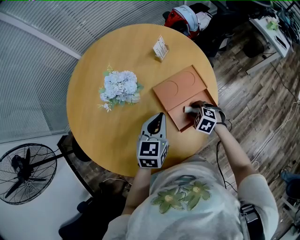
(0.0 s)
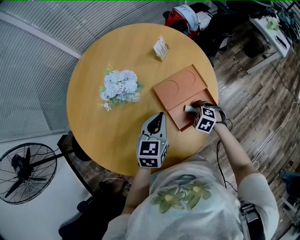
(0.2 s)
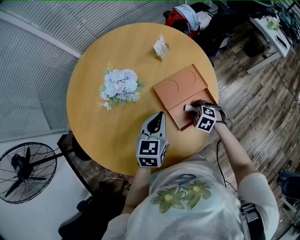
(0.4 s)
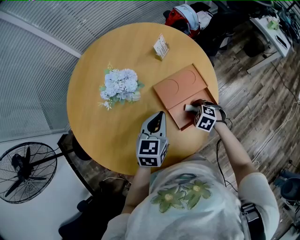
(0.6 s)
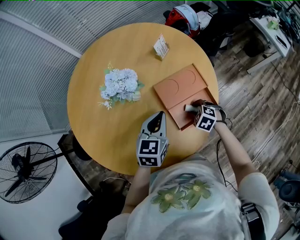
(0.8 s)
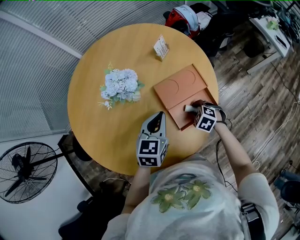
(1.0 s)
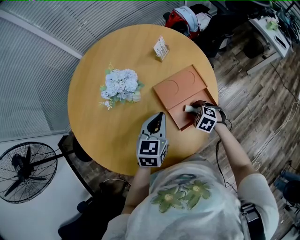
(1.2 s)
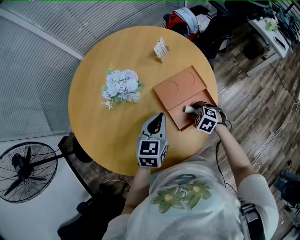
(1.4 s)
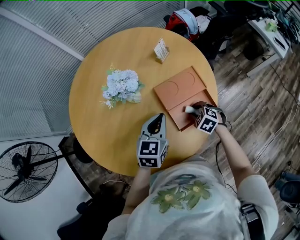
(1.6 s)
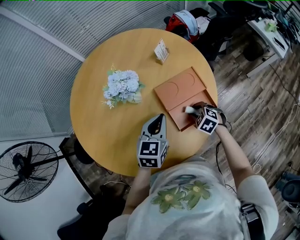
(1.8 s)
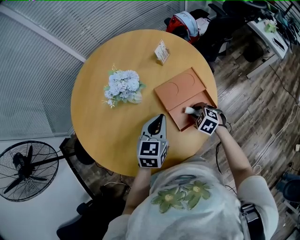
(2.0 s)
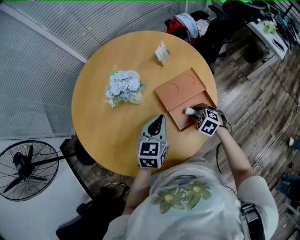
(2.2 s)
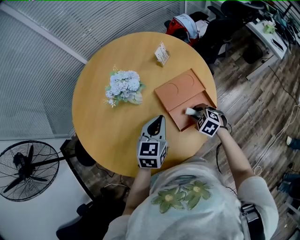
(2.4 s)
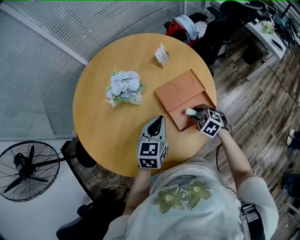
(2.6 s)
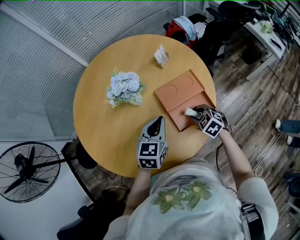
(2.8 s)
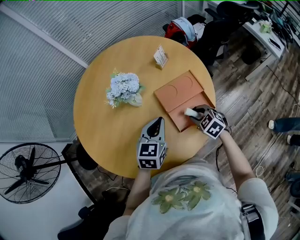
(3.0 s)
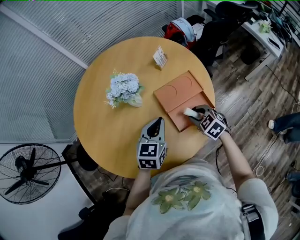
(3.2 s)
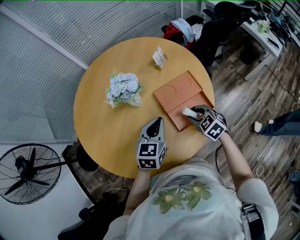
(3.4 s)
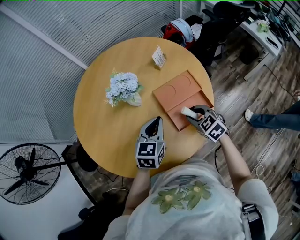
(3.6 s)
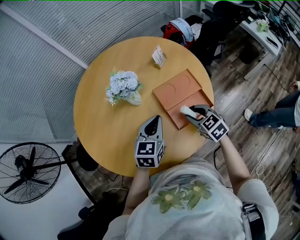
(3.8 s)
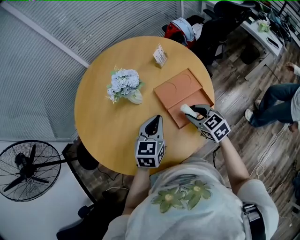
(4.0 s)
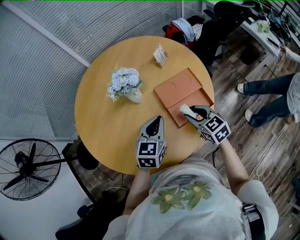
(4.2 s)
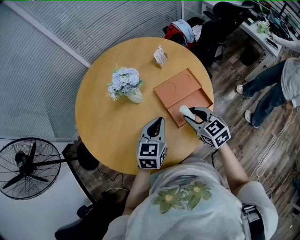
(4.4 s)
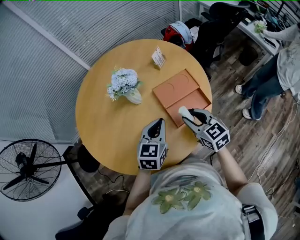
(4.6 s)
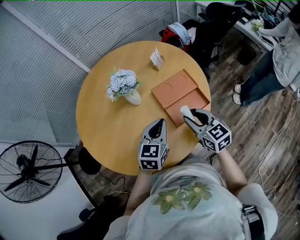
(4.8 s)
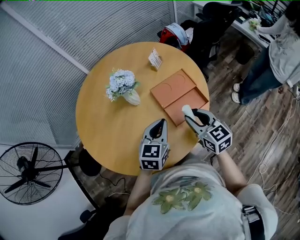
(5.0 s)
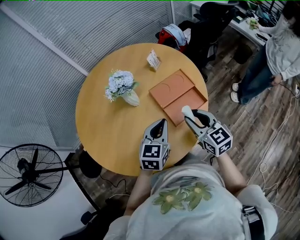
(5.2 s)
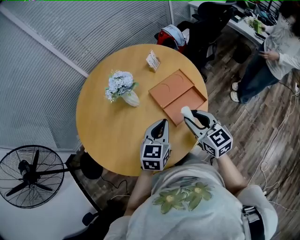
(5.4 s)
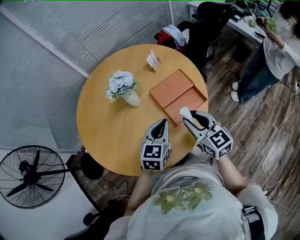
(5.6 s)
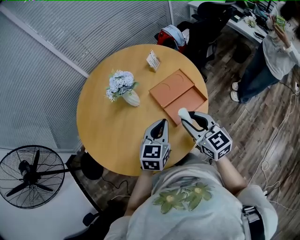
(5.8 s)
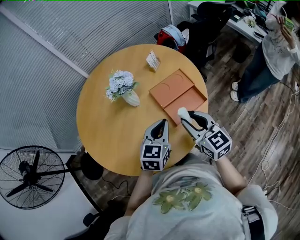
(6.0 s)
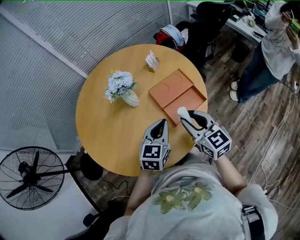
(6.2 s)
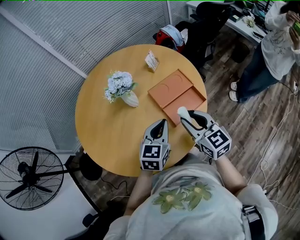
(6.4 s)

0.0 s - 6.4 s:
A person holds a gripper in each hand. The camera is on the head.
0.0 s - 1.6 s: The grippers move only a little.
1.6 s - 3.2 s: The right gripper heads upward, covering some 10 cm.
3.2 s - 4.8 s: The left gripper travels backward by approximately 5 cm. The right gripper is displaced upward and backward by some 15 cm, and swivels approximately 40 degrees.
4.8 s - 6.4 s: The right gripper moves roughly 5 cm.

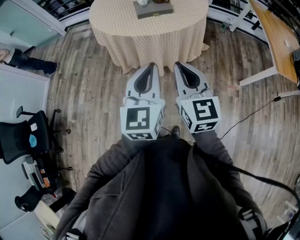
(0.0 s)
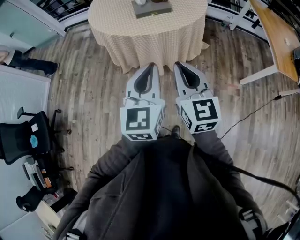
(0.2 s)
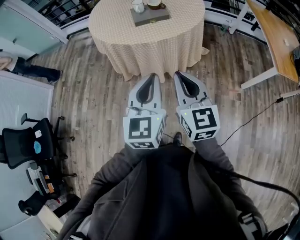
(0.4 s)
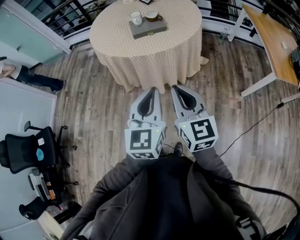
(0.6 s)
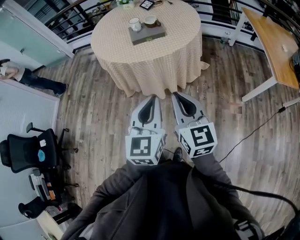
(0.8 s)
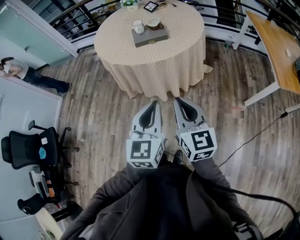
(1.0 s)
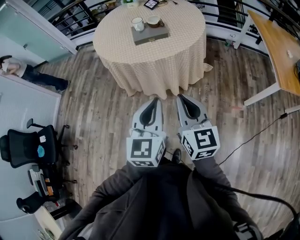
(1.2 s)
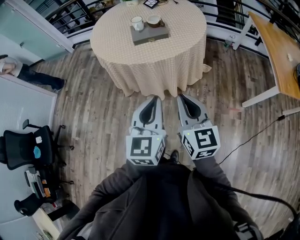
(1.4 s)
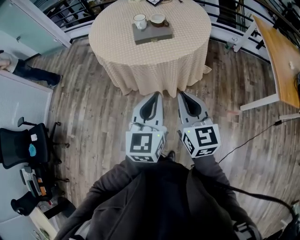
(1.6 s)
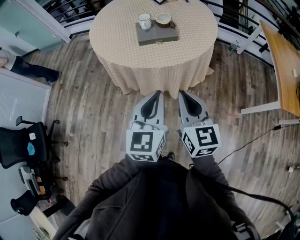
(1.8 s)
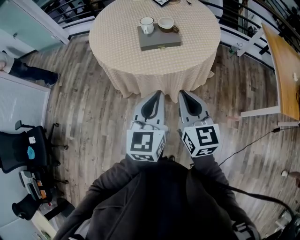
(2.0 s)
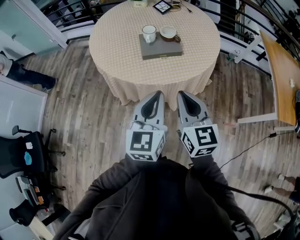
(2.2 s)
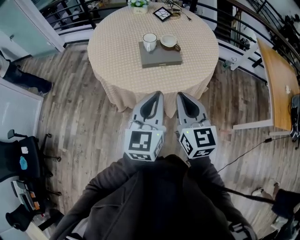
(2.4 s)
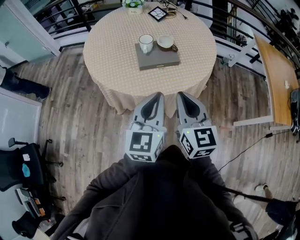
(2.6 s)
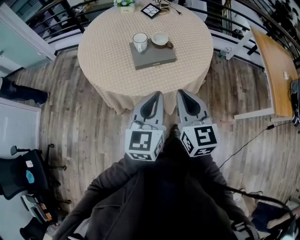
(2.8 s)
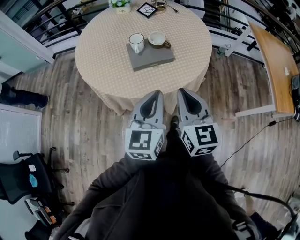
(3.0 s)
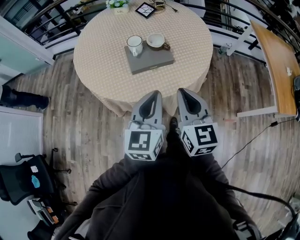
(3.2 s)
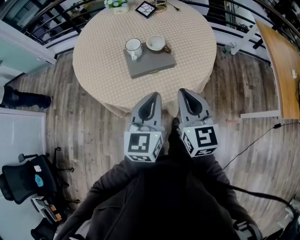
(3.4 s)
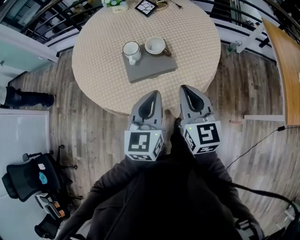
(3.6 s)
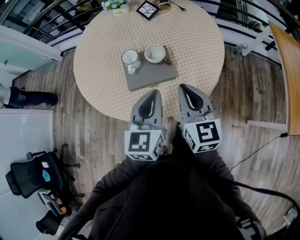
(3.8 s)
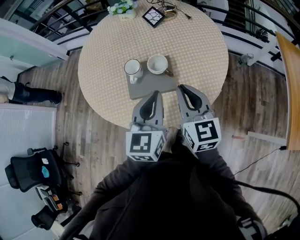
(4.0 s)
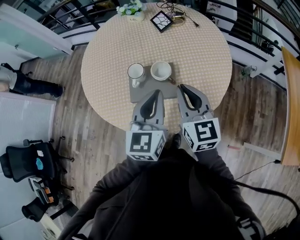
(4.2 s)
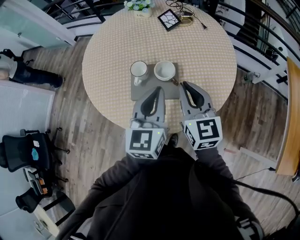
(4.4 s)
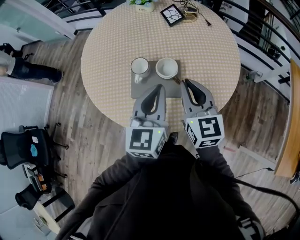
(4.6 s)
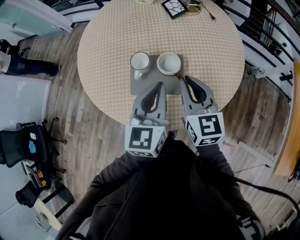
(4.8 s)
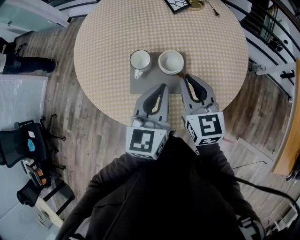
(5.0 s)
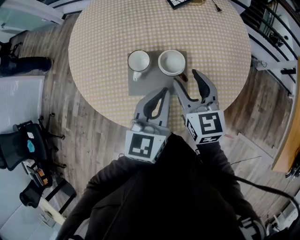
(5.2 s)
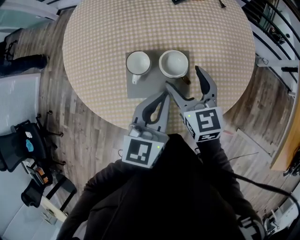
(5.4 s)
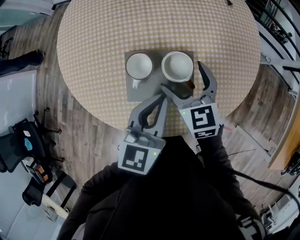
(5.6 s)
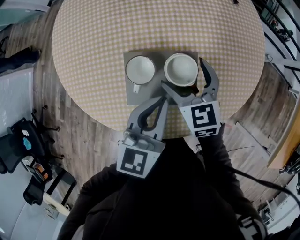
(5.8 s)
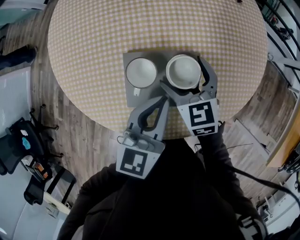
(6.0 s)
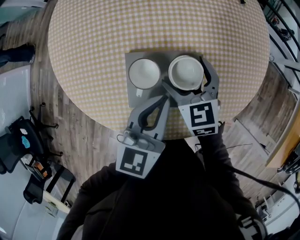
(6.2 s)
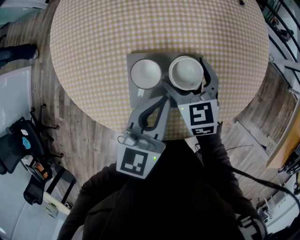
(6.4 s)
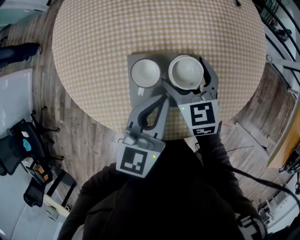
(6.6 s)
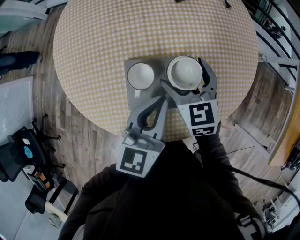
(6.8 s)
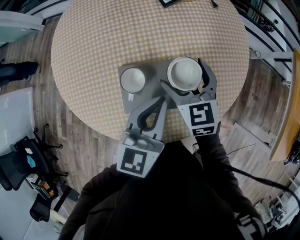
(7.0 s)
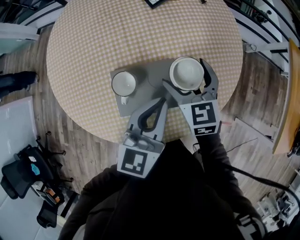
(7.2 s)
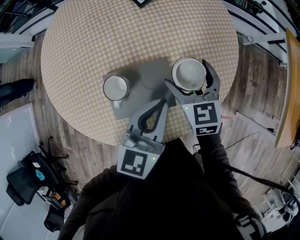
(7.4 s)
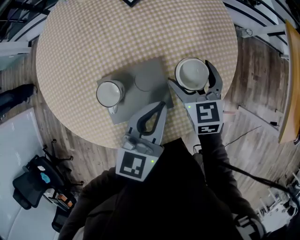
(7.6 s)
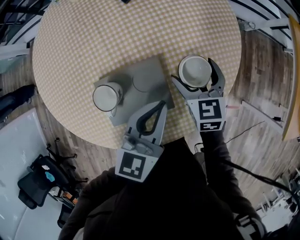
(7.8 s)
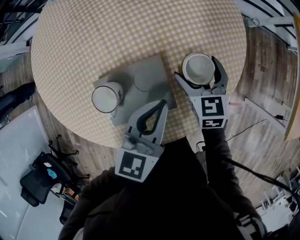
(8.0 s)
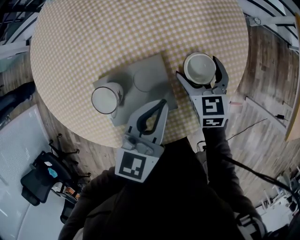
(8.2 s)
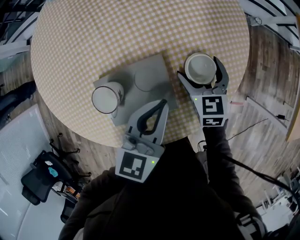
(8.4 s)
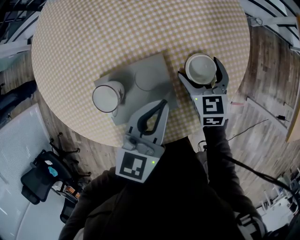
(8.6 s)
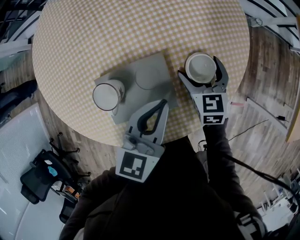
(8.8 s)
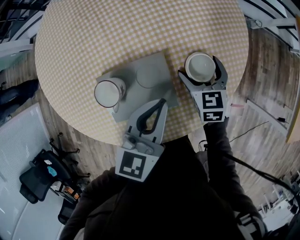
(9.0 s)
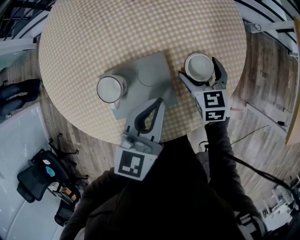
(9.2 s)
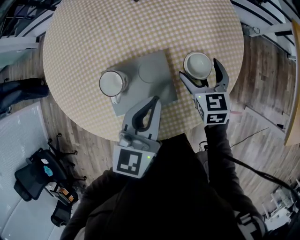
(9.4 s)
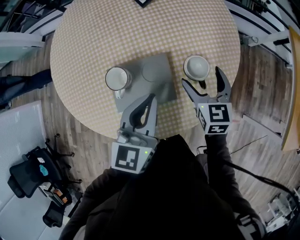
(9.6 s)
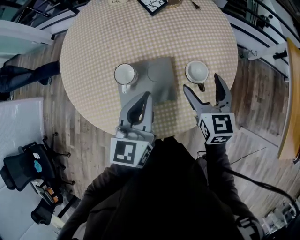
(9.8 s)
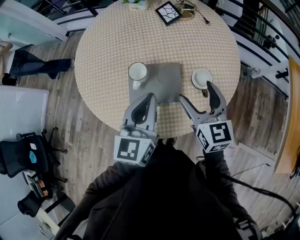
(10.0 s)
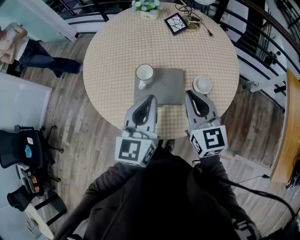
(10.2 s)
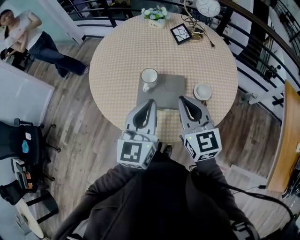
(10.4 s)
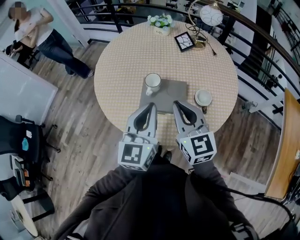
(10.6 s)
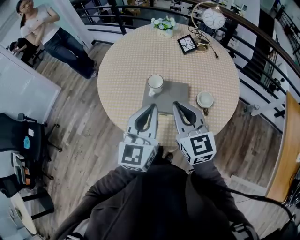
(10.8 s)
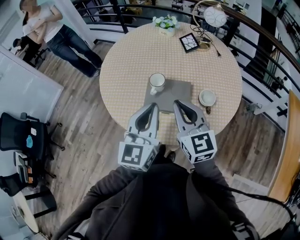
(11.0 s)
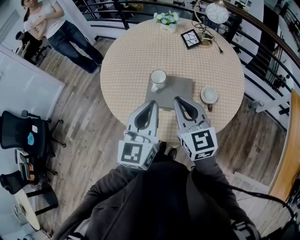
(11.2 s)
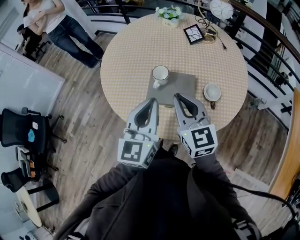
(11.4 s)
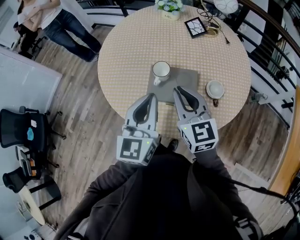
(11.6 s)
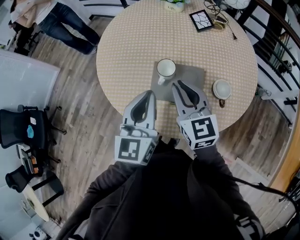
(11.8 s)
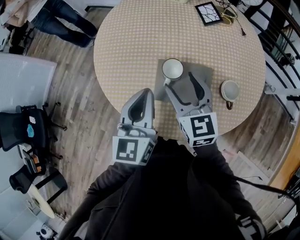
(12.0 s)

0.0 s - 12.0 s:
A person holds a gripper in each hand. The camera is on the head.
0.0 s - 1.6 s: Both grippers move forward and to the right, some 10 cm.
1.6 s - 3.0 s: The grippers both shift forward by roughly 20 cm.
3.0 s - 4.4 s: The grippers both shift forward by some 25 cm.
4.4 s - 6.0 s: The right gripper moves downward, forward and to the left, roughly 25 cm, turns by about 30 degrees, and opens. Meanwhile the left gripper goes roughly 15 cm downward, forward and to the left.
6.0 s - 7.6 s: The left gripper shifts some 10 cm to the right; the right gripper shifts about 15 cm to the right, and changes its angle by some 20 degrees.
7.6 s - 9.0 s: The right gripper heads downward, covering approximately 5 cm.
9.0 s - 10.4 s: The right gripper goes about 25 cm upward, tips its fingers upward by about 30 degrees, and closes its fingers; the left gripper moves approximately 20 cm, and swivels roughly 40 degrees.
10.4 s - 12.0 s: The right gripper heads forward, to the left and downward, covering roughly 15 cm, and opens. Meanwhile the left gripper heads forward and to the left, covering approximately 10 cm.

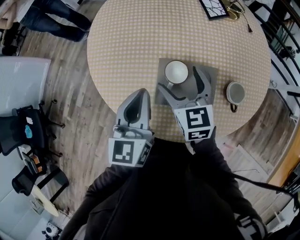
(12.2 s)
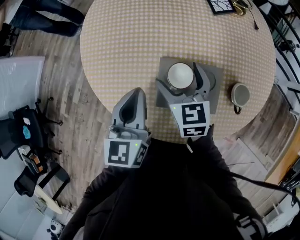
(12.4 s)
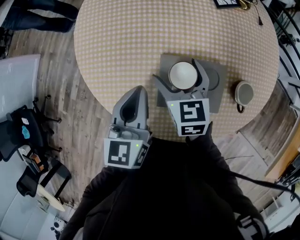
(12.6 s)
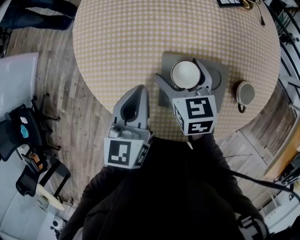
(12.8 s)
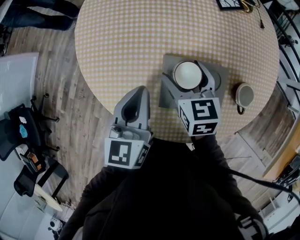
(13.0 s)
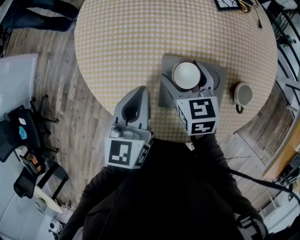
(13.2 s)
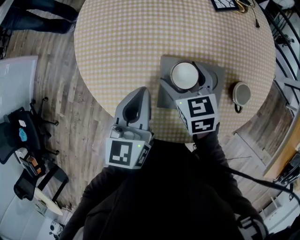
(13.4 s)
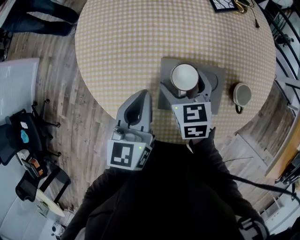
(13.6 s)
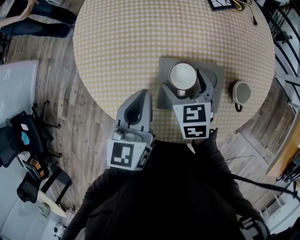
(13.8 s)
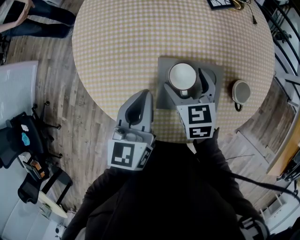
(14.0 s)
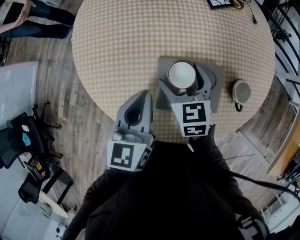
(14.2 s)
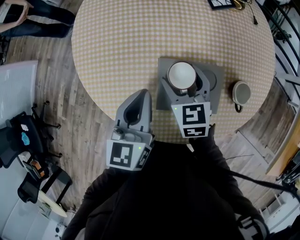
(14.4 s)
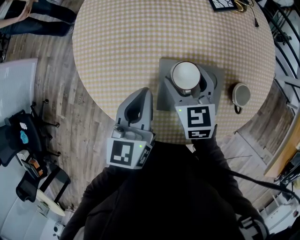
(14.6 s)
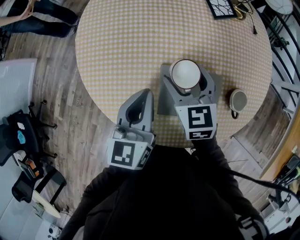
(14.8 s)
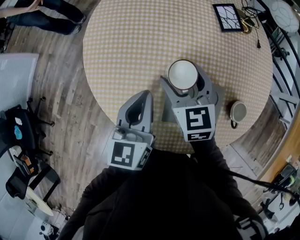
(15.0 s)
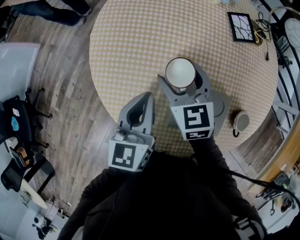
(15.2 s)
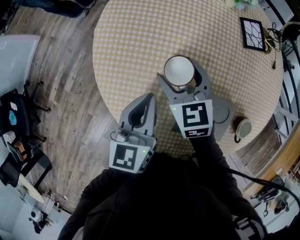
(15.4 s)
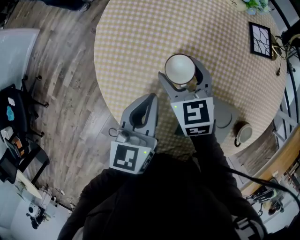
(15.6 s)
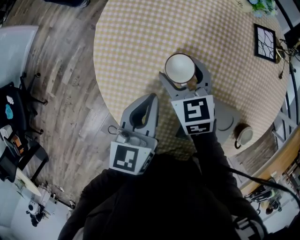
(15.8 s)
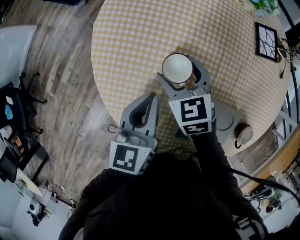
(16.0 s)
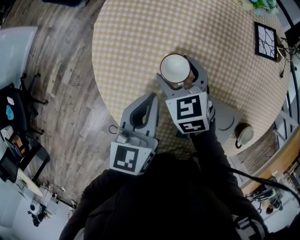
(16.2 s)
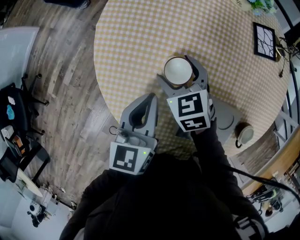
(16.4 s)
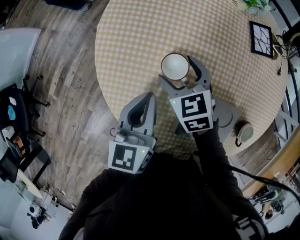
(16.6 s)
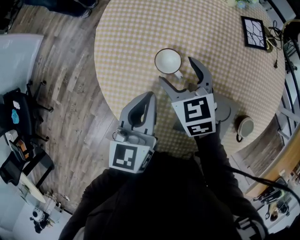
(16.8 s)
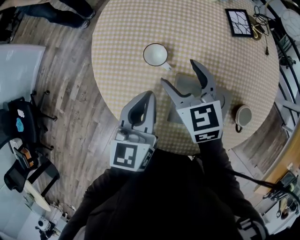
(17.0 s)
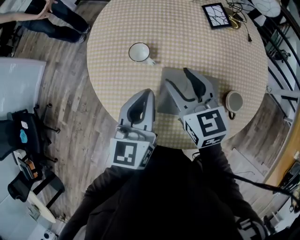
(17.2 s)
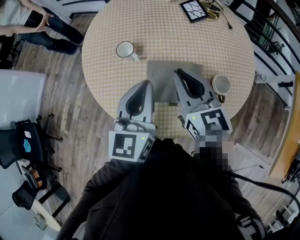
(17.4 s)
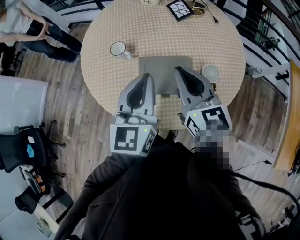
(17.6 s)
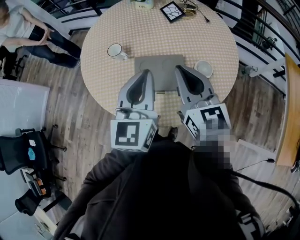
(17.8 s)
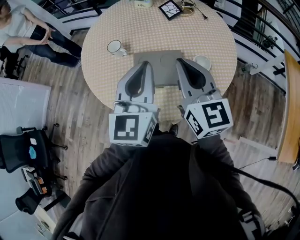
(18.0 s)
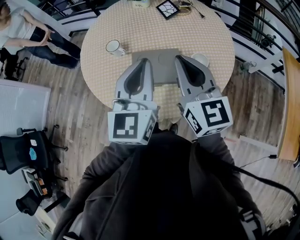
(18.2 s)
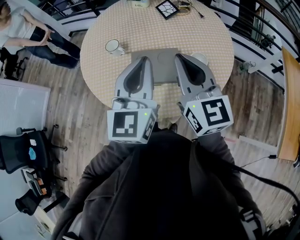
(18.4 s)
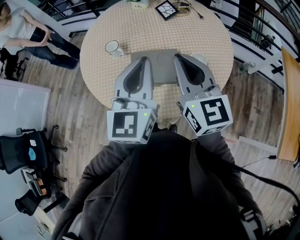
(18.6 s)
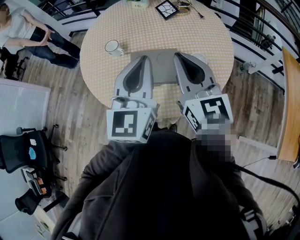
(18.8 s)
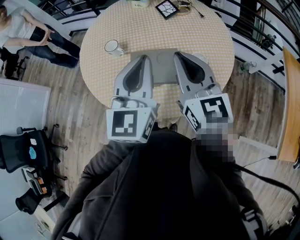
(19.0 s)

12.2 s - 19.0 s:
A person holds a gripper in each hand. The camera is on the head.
12.2 s - 13.6 s: The right gripper goes roughly 5 cm downward. Meanwhile the left gripper changes place by approximately 5 cm.
13.6 s - 15.0 s: The left gripper shifts some 5 cm forward; the right gripper goes about 10 cm forward and upward.
15.0 s - 16.2 s: The left gripper shifts roughly 10 cm downward and to the left; the right gripper goes roughly 15 cm downward, to the left and forward, and turns by roughly 20 degrees.
16.2 s - 17.6 s: The two grippers go some 35 cm backward, upward and to the right. The left gripper rotates roughly 30 degrees. Meanwhile the right gripper tilts its fingers approximately 40 degrees upward, and closes.
17.6 s - 19.0 s: The left gripper is displaced upward and to the right by about 10 cm. Meanwhile the right gripper travels backward and upward by some 10 cm.
